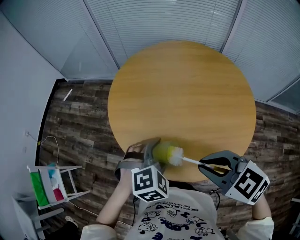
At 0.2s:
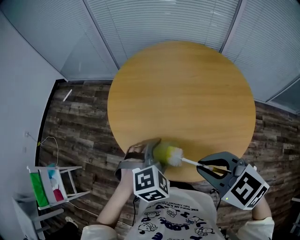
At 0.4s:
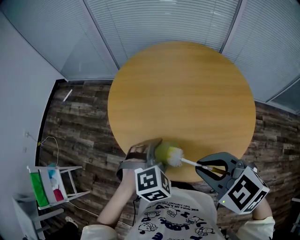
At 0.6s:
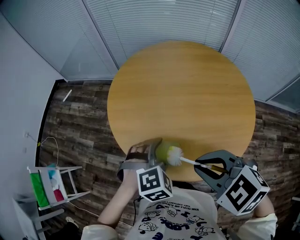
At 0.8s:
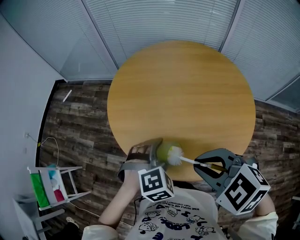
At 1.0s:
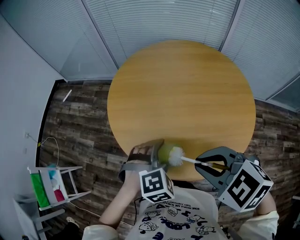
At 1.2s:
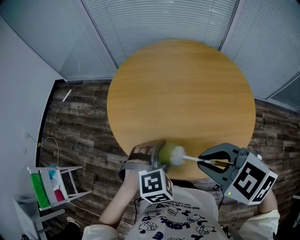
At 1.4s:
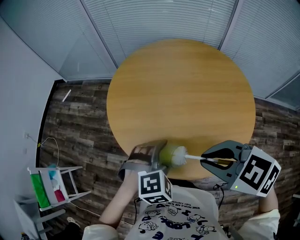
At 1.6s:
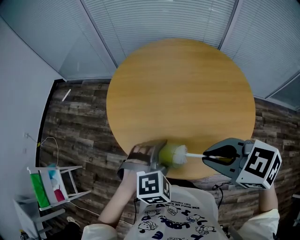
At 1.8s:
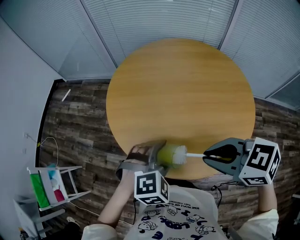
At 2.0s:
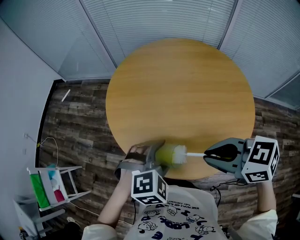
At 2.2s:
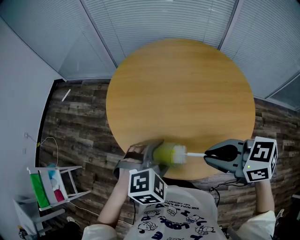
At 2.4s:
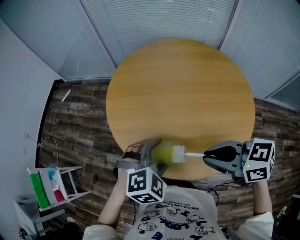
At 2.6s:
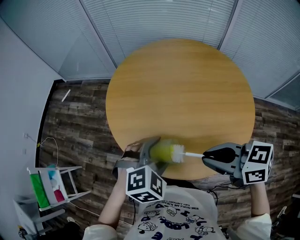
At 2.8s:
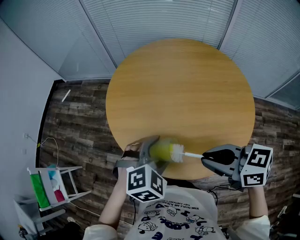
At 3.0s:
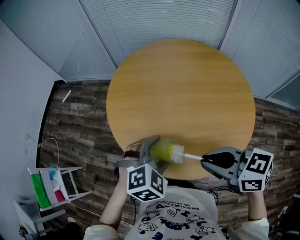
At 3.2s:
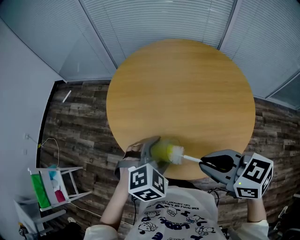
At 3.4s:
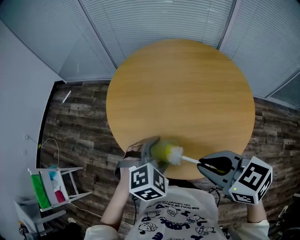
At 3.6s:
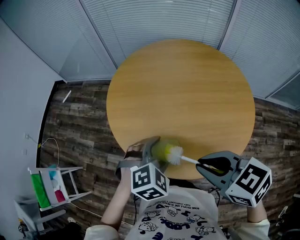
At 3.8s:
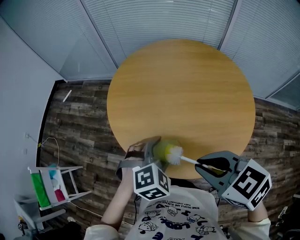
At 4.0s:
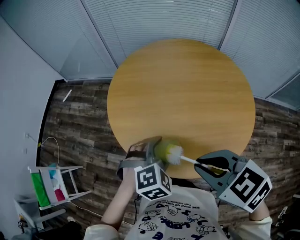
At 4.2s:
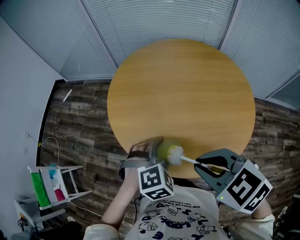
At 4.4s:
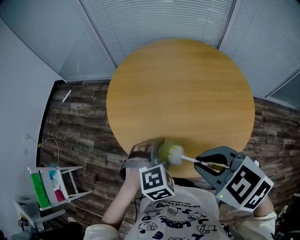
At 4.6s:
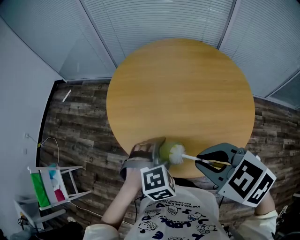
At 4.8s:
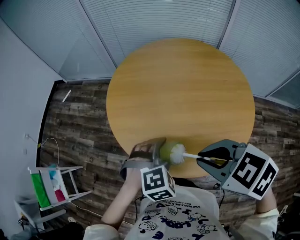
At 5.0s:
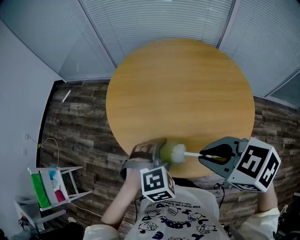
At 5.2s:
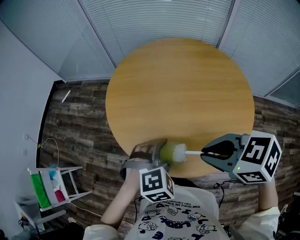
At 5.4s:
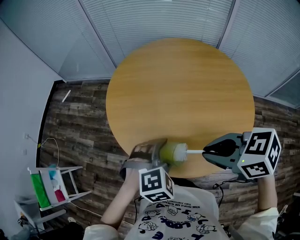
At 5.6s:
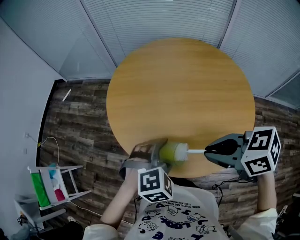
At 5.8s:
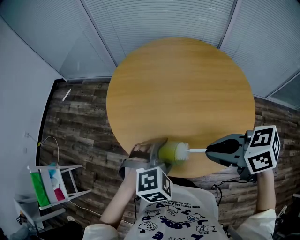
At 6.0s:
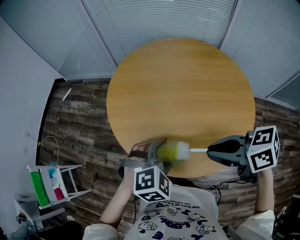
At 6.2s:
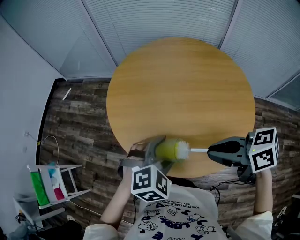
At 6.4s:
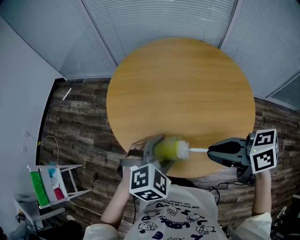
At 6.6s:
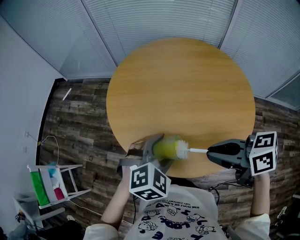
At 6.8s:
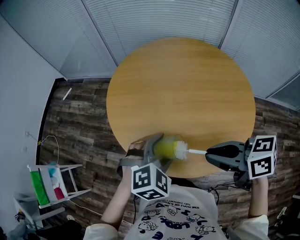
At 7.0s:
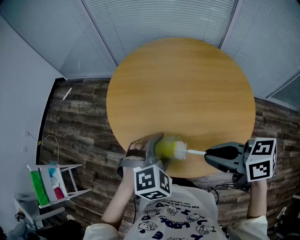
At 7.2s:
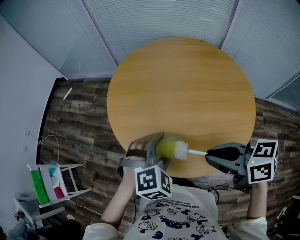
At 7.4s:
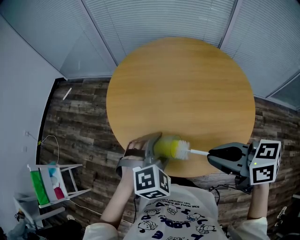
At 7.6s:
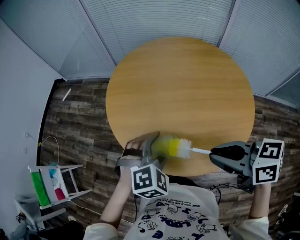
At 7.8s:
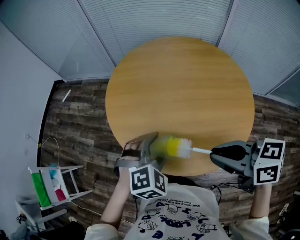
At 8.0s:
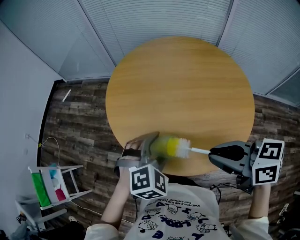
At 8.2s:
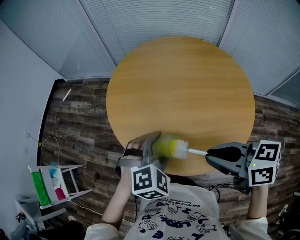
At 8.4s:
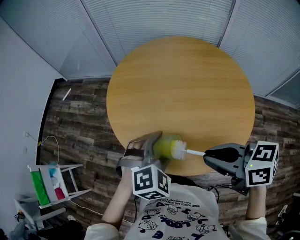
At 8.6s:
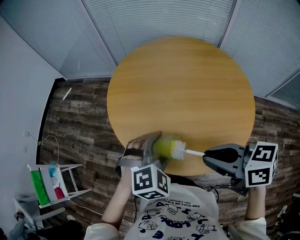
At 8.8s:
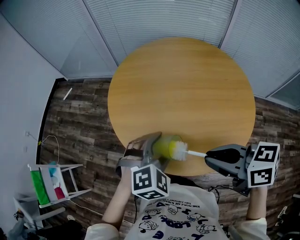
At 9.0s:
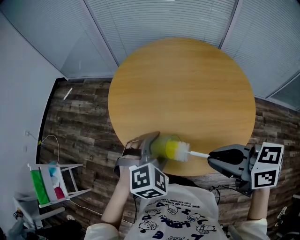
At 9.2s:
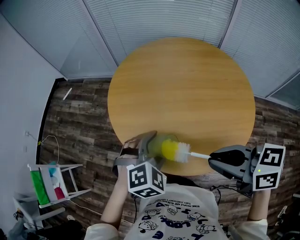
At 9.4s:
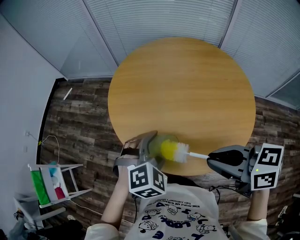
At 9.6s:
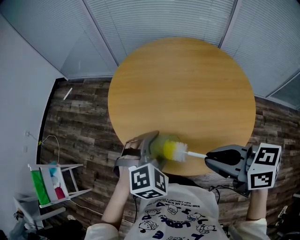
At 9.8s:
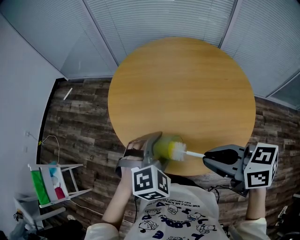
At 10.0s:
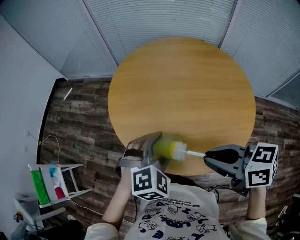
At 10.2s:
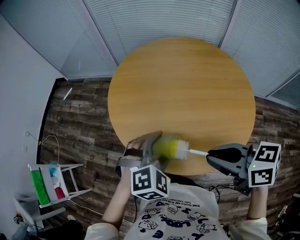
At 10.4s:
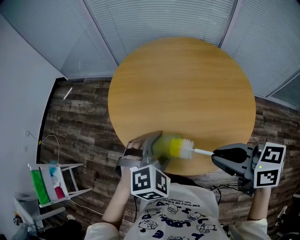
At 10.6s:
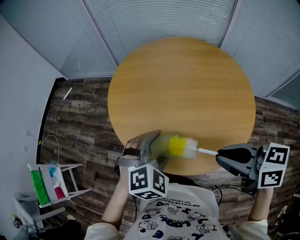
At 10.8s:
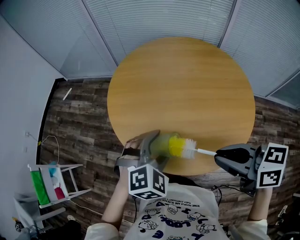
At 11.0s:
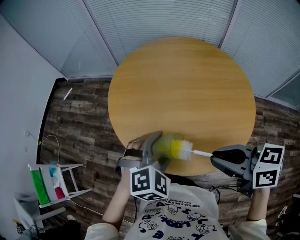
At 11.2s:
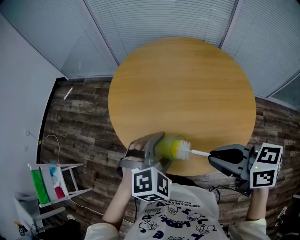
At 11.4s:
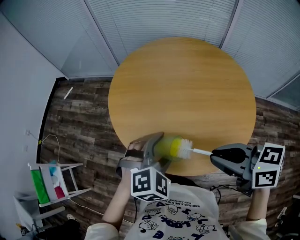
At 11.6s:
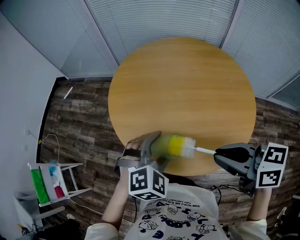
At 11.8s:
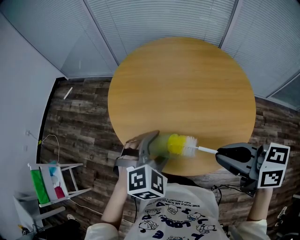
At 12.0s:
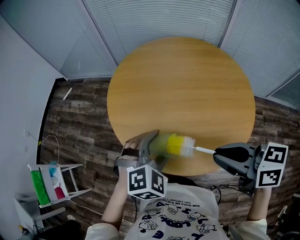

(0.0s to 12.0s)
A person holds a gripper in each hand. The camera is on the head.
0.0s - 1.6s: The grippers stay close to where they were, moving slightly.
1.6s - 3.0s: The right gripper changes its angle by about 20 degrees.
3.0s - 4.4s: The right gripper changes its angle by about 30 degrees.
4.4s - 6.0s: The right gripper moves to the right, about 5 cm, and swivels about 40 degrees.
6.0s - 10.4s: The grippers stay close to where they were, moving slightly.
10.4s - 12.0s: The two grippers keep their place.

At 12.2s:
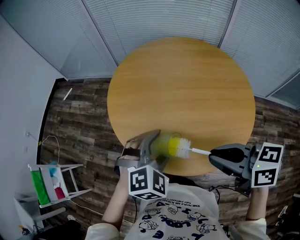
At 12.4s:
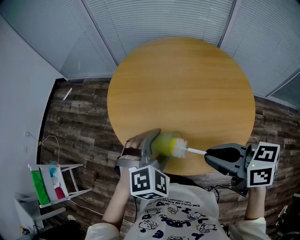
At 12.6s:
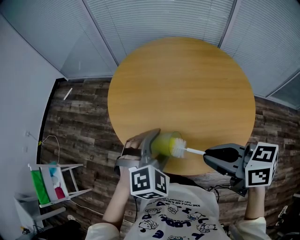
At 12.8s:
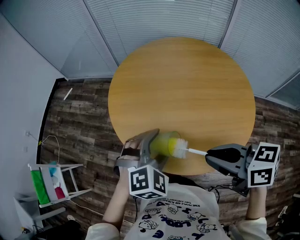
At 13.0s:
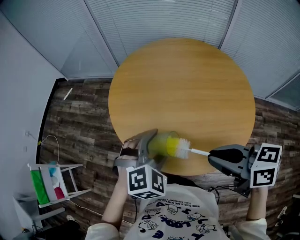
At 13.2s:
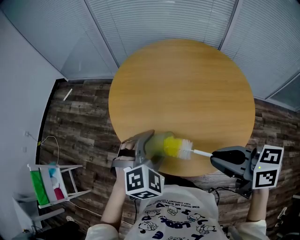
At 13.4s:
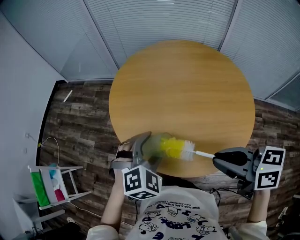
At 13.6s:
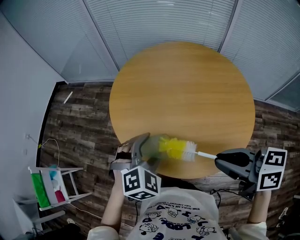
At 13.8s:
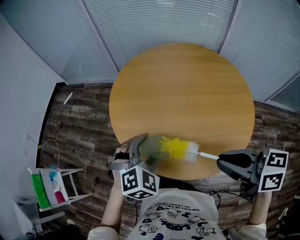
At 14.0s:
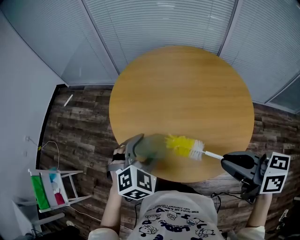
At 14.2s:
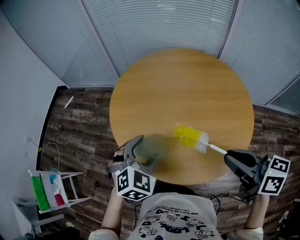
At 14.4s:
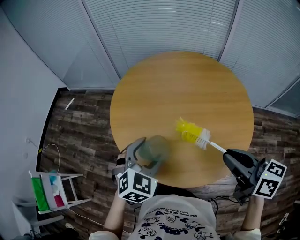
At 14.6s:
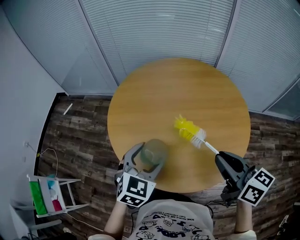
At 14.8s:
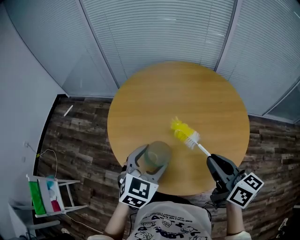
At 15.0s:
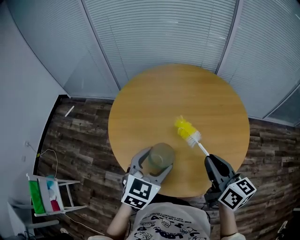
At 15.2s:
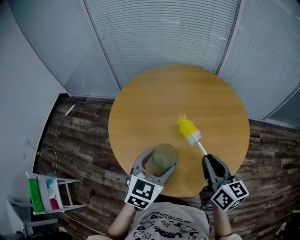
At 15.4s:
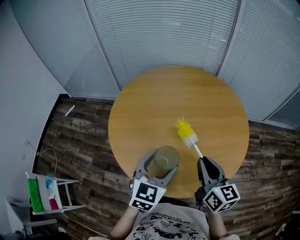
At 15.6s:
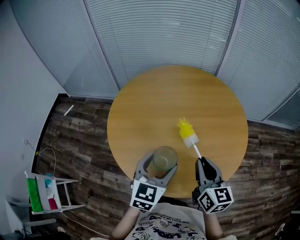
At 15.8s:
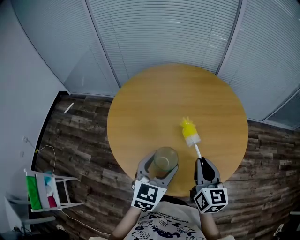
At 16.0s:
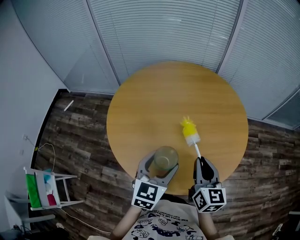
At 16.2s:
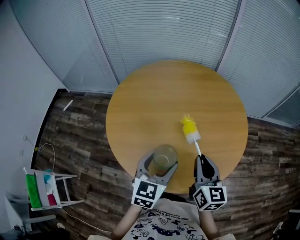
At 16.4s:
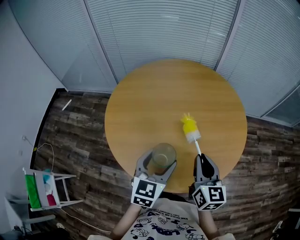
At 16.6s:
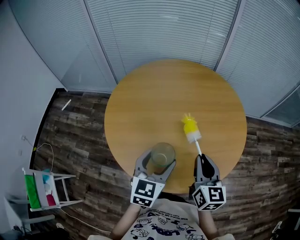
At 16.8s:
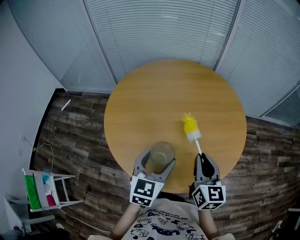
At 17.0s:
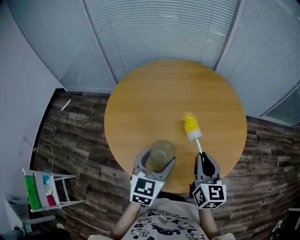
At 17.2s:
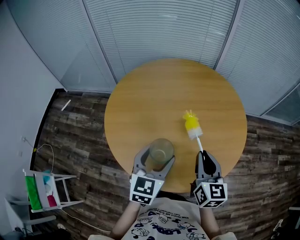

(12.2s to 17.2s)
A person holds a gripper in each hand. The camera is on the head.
12.2s - 13.8s: There are only small adjustments of the grippers.
13.8s - 15.6s: The left gripper changes place by about 10 cm, and swivels some 40 degrees; the right gripper travels downward by approximately 10 cm, and swivels roughly 50 degrees.
15.6s - 17.2s: The grippers stay close to where they were, moving slightly.

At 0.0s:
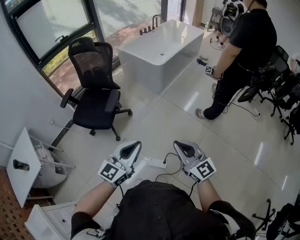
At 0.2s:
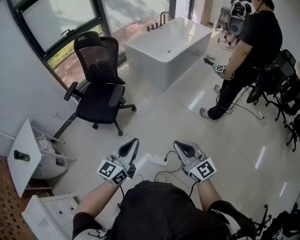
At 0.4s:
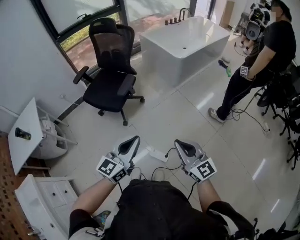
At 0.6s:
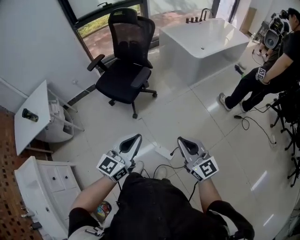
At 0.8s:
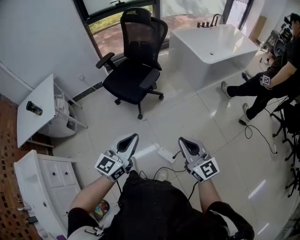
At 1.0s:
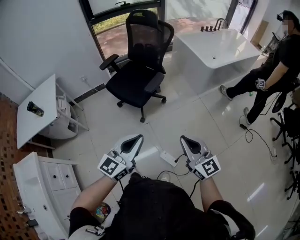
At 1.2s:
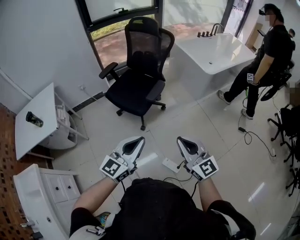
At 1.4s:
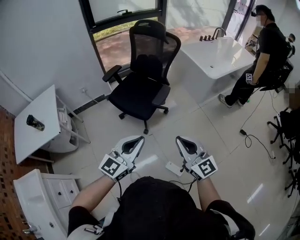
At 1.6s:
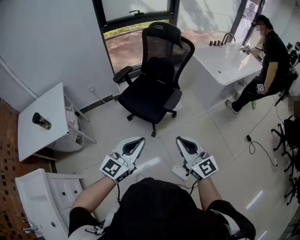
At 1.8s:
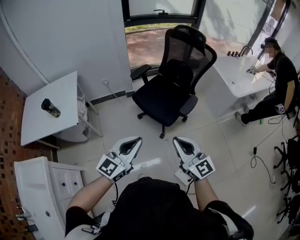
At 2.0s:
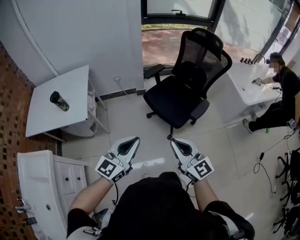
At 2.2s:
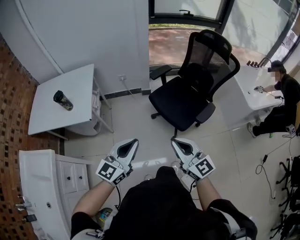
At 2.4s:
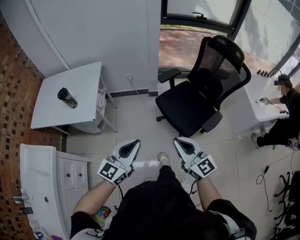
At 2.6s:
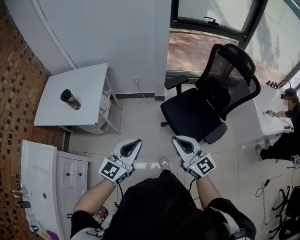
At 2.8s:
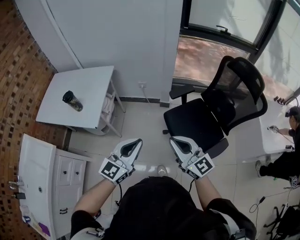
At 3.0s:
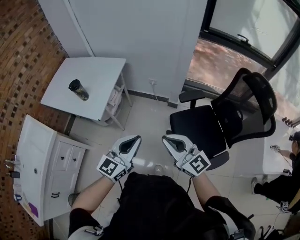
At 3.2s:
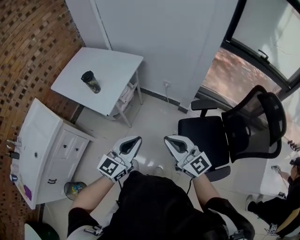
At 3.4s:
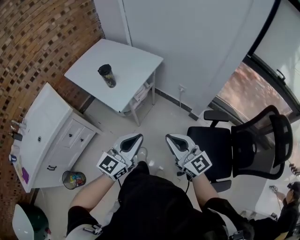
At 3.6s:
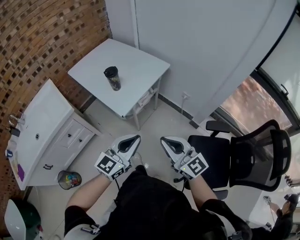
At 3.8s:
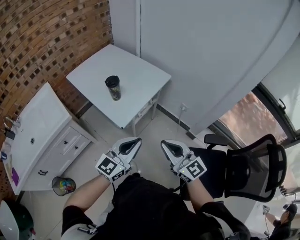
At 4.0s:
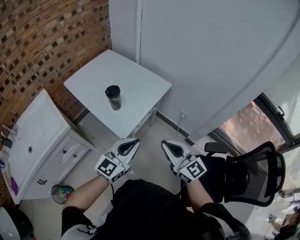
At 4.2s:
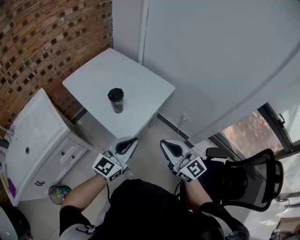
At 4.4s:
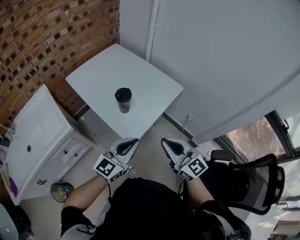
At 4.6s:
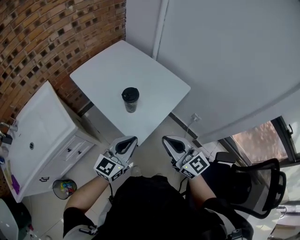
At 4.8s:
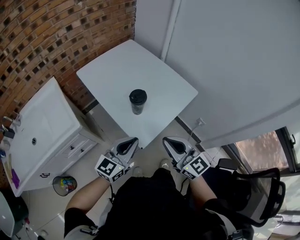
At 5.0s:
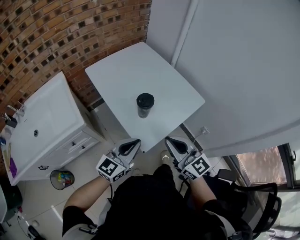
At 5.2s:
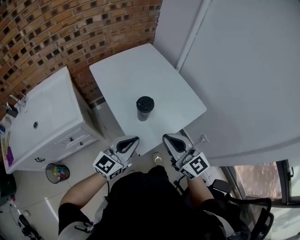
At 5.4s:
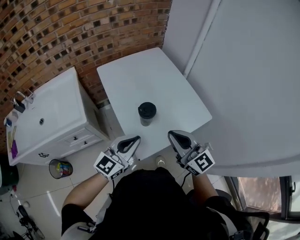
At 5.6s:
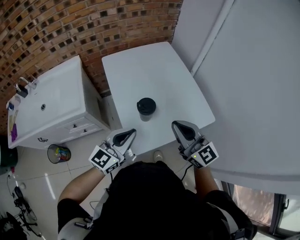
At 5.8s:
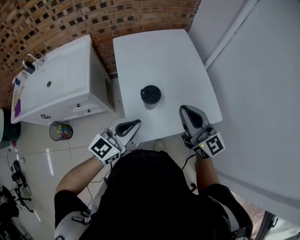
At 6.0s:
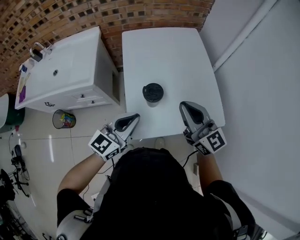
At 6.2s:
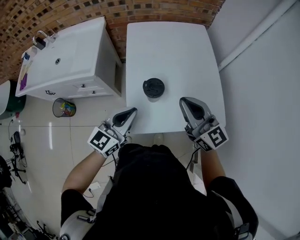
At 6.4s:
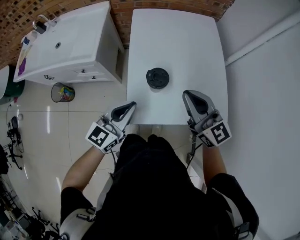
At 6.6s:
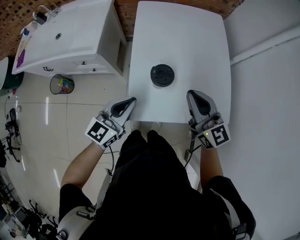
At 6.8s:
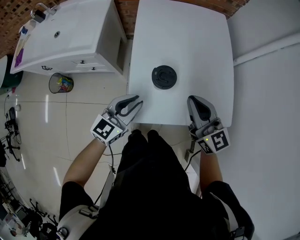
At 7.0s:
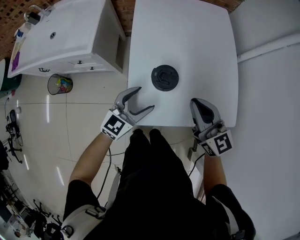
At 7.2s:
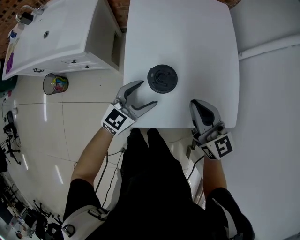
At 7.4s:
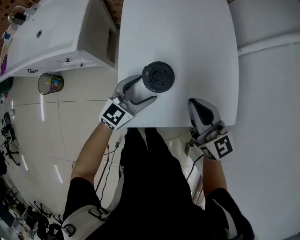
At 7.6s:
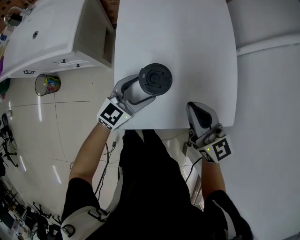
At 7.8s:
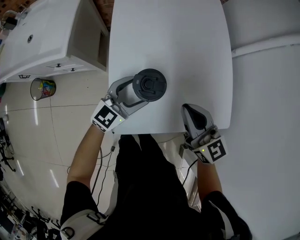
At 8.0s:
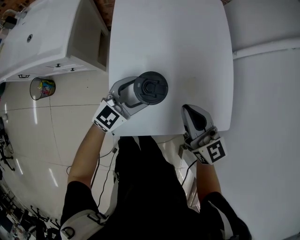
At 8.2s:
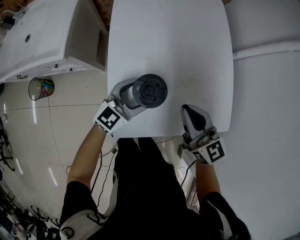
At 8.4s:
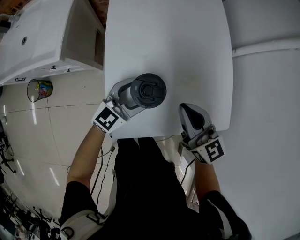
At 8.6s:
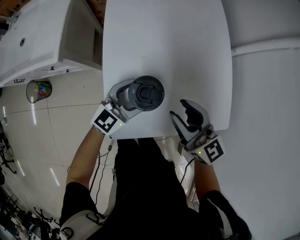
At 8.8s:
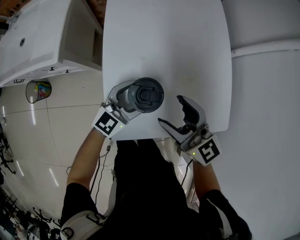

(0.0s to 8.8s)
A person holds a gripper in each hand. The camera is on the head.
0.0s - 1.4s: The left gripper heads to the left, covering roughly 25 cm, while the right gripper goes roughly 25 cm to the left and forward.
1.4s - 3.0s: The right gripper ends up some 50 cm from where it was, and turns by roughly 50 degrees. Meanwhile the left gripper moves some 40 cm, and rotates about 50 degrees.
3.0s - 4.4s: The grippers both shift forward and to the left by some 35 cm. The left gripper turns by roughly 20 degrees, while the right gripper rotates approximately 20 degrees.
4.4s - 5.8s: The left gripper changes place by some 15 cm, and changes its angle by approximately 30 degrees. Meanwhile the right gripper moves about 25 cm, and turns by approximately 30 degrees.
5.8s - 7.4s: The left gripper is displaced downward and forward by about 20 cm, and opens its fingers; the right gripper is displaced downward by about 15 cm.
7.4s - 8.8s: The right gripper opens.
